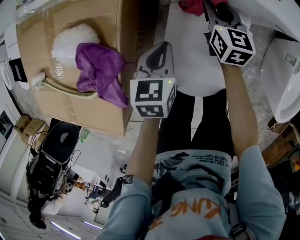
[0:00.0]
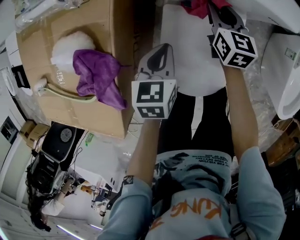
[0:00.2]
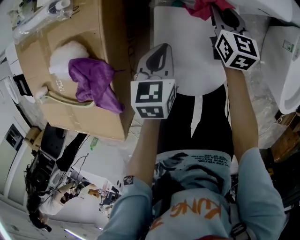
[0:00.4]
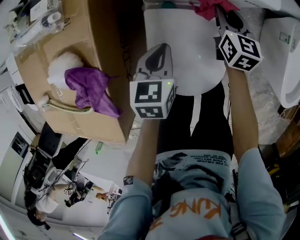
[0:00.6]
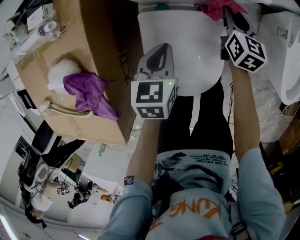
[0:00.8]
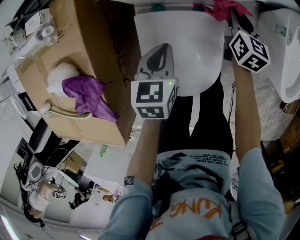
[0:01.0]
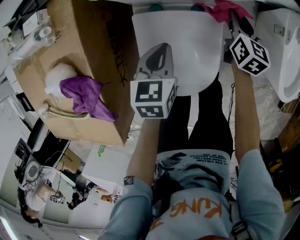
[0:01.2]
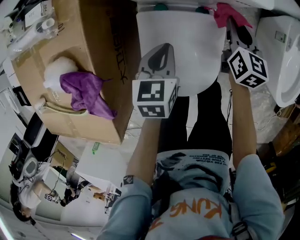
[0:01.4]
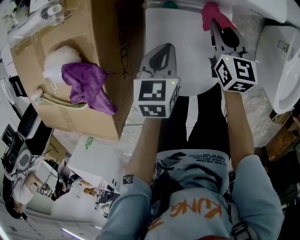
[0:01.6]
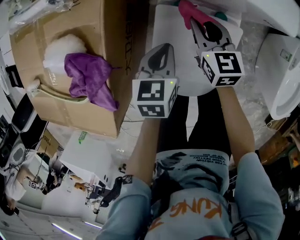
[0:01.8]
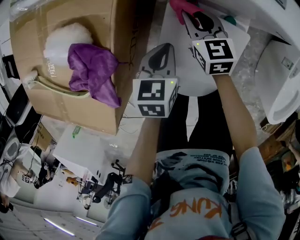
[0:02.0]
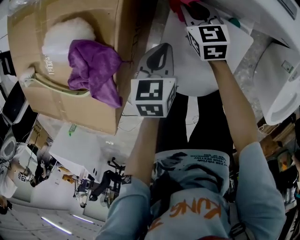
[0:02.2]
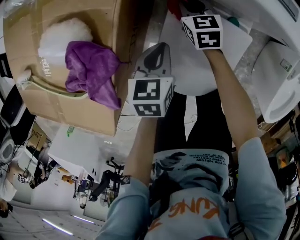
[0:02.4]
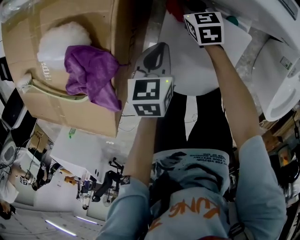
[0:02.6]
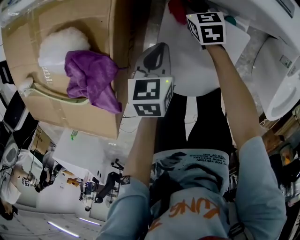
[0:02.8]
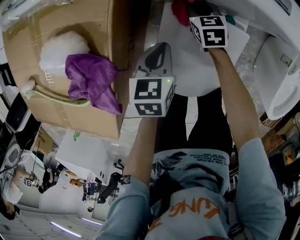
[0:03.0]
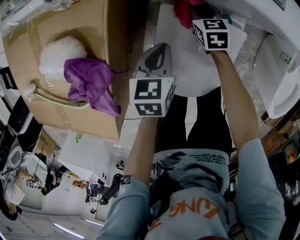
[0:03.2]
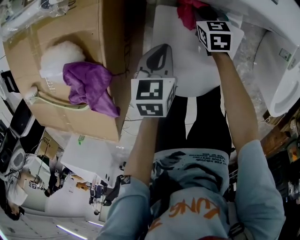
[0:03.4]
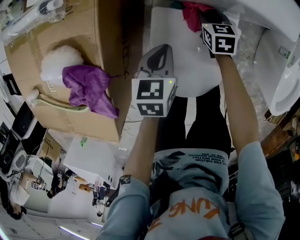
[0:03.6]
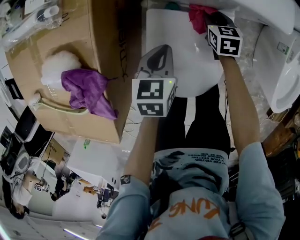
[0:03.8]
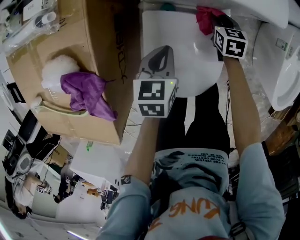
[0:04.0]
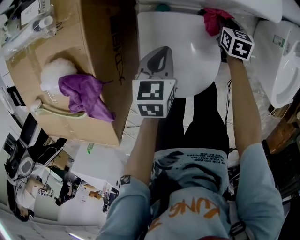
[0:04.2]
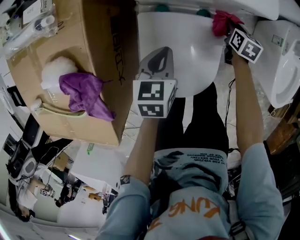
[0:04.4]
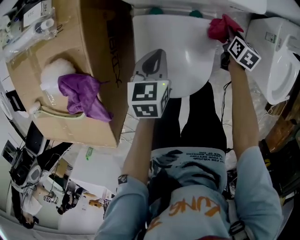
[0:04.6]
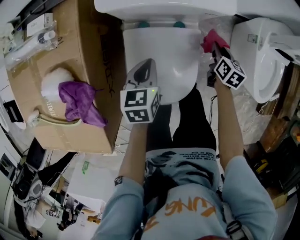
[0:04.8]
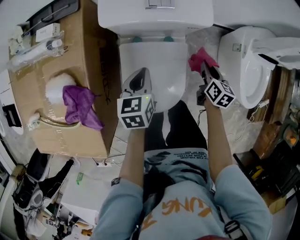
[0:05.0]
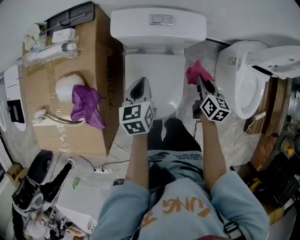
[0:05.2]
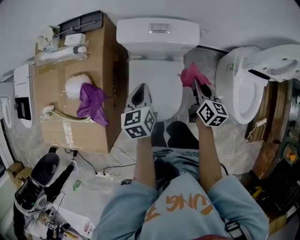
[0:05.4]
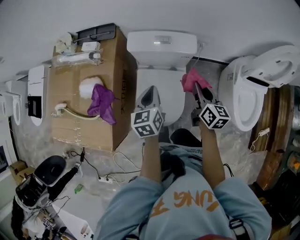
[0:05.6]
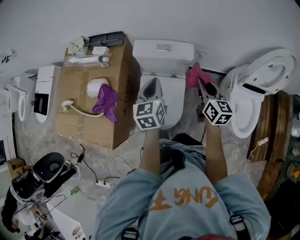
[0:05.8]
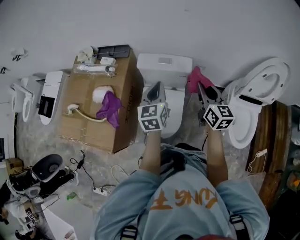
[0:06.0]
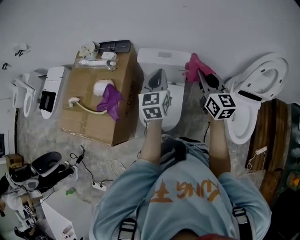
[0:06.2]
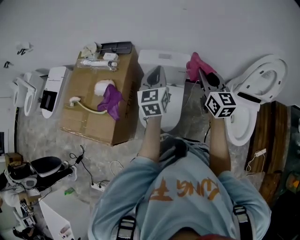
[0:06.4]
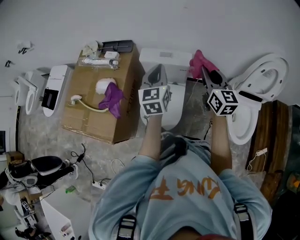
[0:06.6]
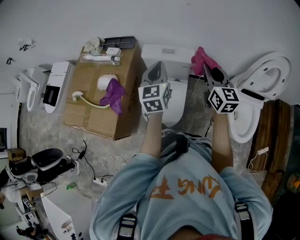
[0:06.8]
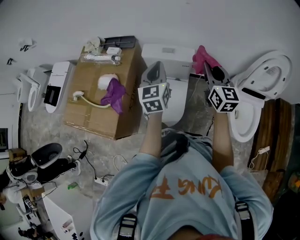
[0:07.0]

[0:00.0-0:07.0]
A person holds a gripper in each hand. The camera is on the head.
0:00.0 to 0:01.4: The left gripper shifts approximately 10 cm to the right. The right gripper goes some 20 cm to the right, and changes its angle by roughly 20 degrees.
0:01.4 to 0:02.8: The right gripper shifts approximately 30 cm to the left and downward, and swivels some 40 degrees. The left gripper heads to the left, covering roughly 10 cm.
0:02.8 to 0:04.2: The left gripper shifts roughly 10 cm to the right. Meanwhile the right gripper goes approximately 25 cm to the right, and swivels about 30 degrees.
0:04.2 to 0:05.6: The grippers both shift upward by approximately 35 cm. The right gripper points its fingers about 30 degrees further upward. Meanwhile the left gripper swivels roughly 30 degrees.
0:05.6 to 0:07.0: The two grippers go about 25 cm upward. The right gripper rotates some 30 degrees. The left gripper turns by approximately 30 degrees.

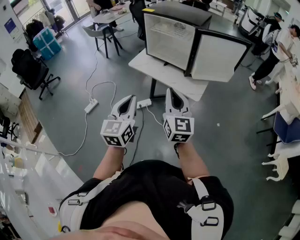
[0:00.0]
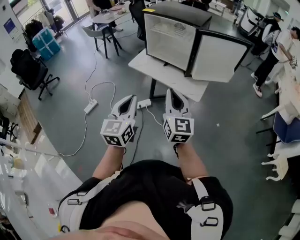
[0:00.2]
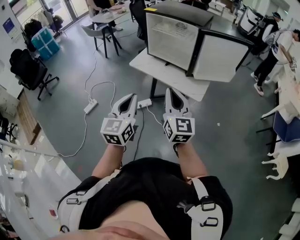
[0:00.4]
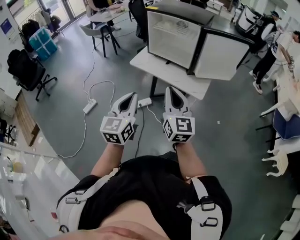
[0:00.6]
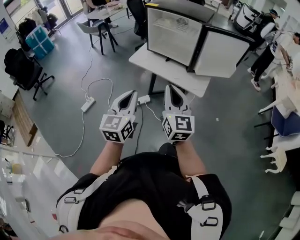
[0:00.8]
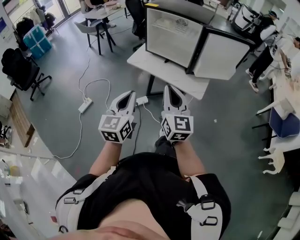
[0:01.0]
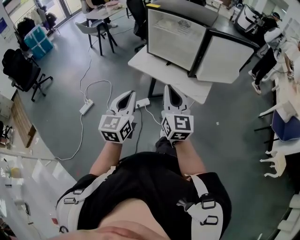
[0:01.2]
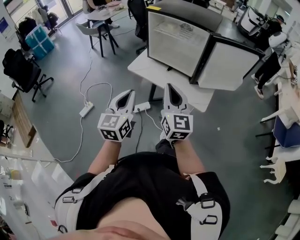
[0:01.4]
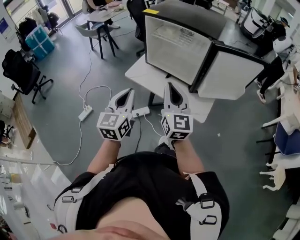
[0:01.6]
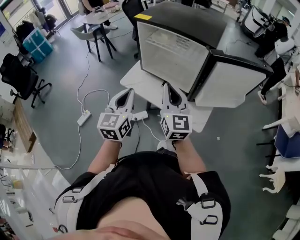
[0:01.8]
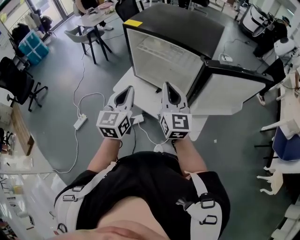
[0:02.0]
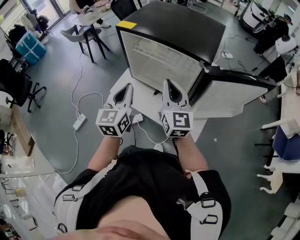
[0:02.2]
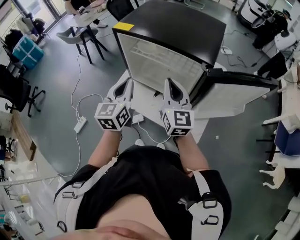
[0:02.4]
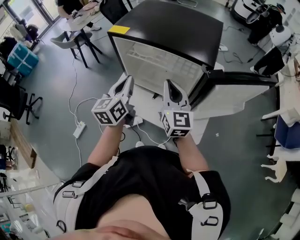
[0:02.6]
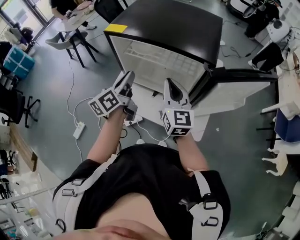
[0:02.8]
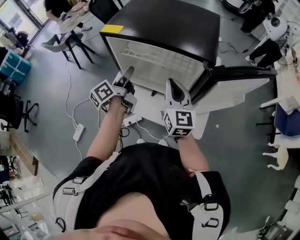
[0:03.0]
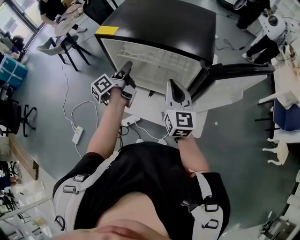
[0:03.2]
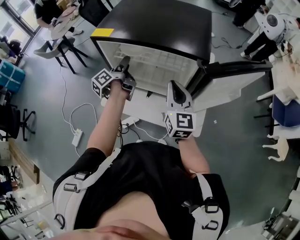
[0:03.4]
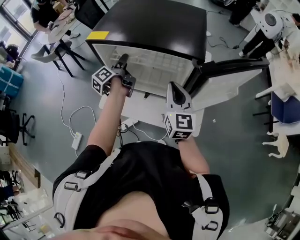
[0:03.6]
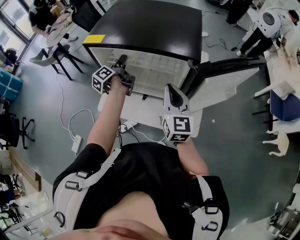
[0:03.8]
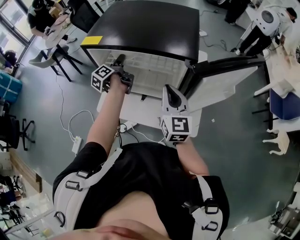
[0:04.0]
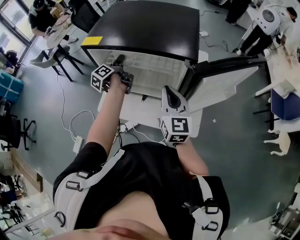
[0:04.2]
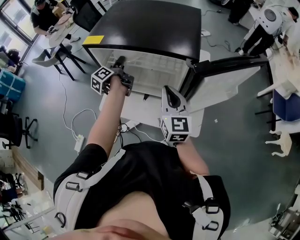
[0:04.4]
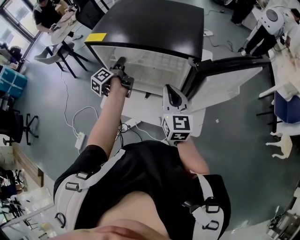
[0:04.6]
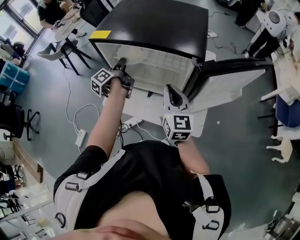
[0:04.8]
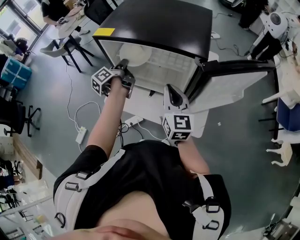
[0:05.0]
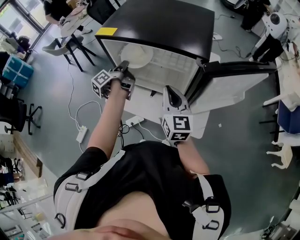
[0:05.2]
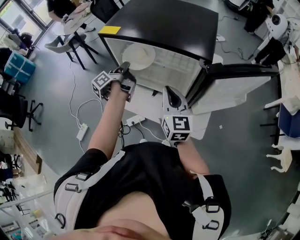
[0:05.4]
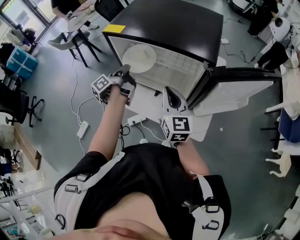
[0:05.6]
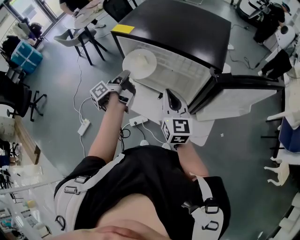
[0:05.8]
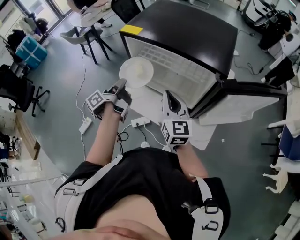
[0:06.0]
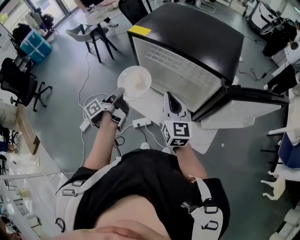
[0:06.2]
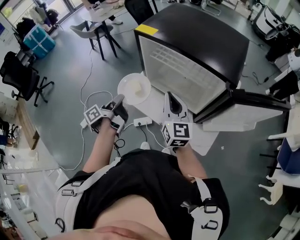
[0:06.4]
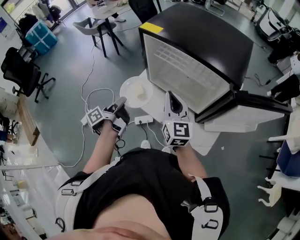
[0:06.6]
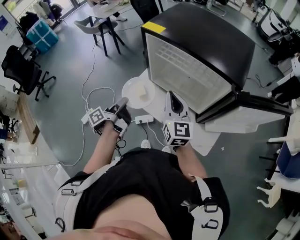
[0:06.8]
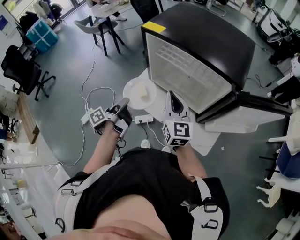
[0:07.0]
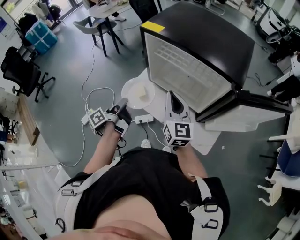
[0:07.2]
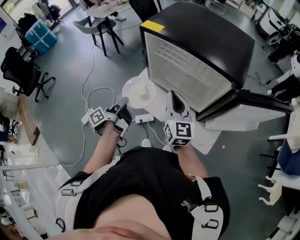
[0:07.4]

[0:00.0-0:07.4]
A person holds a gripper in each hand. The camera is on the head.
0:00.0 to 0:01.4: Both grippers move forward and to the left, approximately 15 cm.
0:01.4 to 0:03.0: The two grippers go some 35 cm forward. The left gripper rolls counterclockwise, seen from behind, by about 60 degrees, and opens up.
0:03.0 to 0:04.4: The left gripper moves forward and downward, approximately 15 cm, and opens.
0:04.4 to 0:06.0: The right gripper heads to the left, covering roughly 10 cm, while the left gripper is displaced backward and to the left by approximately 20 cm, and closes up.
0:06.0 to 0:07.4: The left gripper goes roughly 10 cm backward.

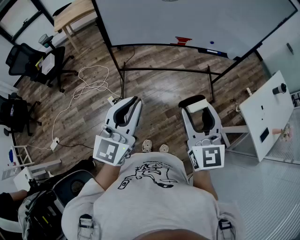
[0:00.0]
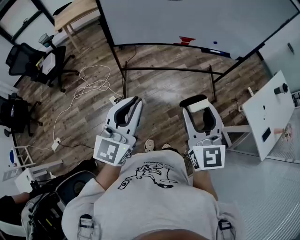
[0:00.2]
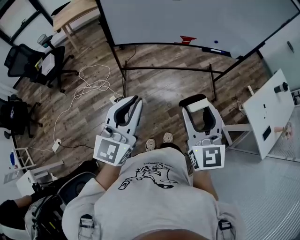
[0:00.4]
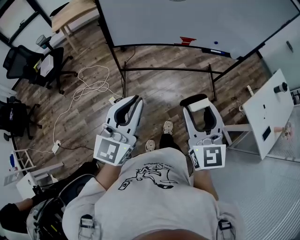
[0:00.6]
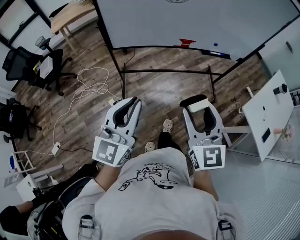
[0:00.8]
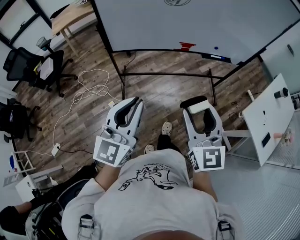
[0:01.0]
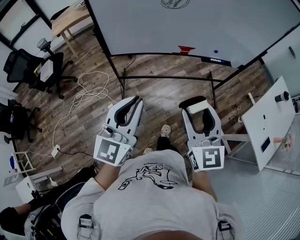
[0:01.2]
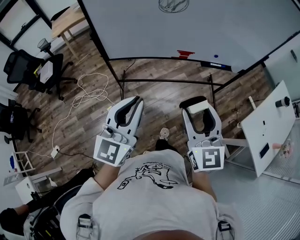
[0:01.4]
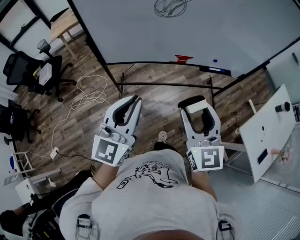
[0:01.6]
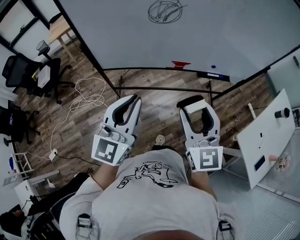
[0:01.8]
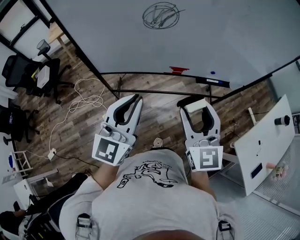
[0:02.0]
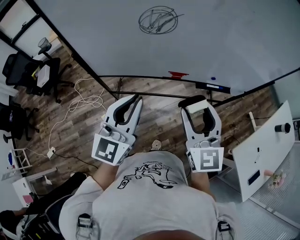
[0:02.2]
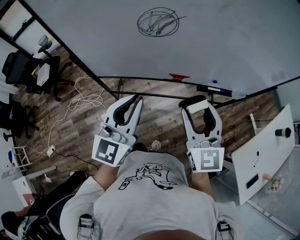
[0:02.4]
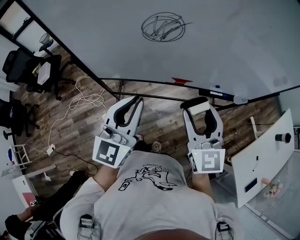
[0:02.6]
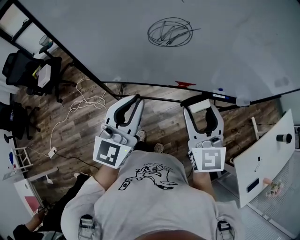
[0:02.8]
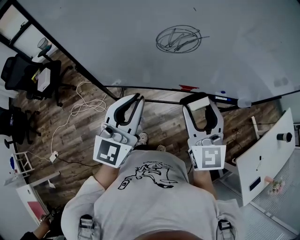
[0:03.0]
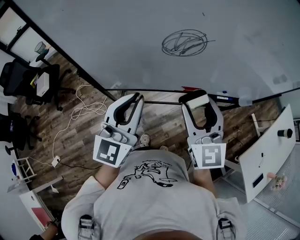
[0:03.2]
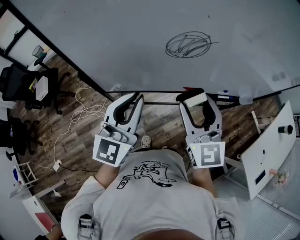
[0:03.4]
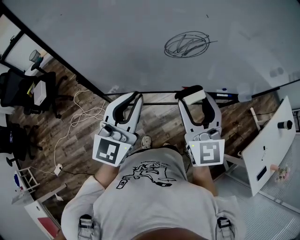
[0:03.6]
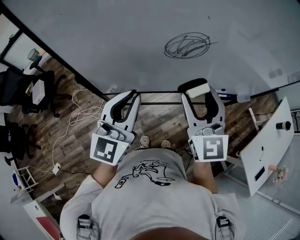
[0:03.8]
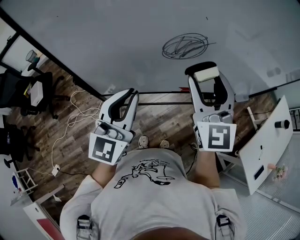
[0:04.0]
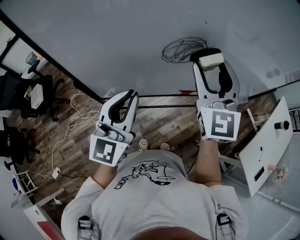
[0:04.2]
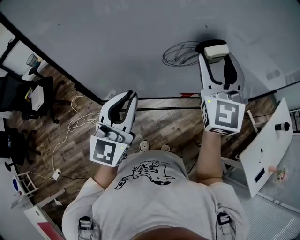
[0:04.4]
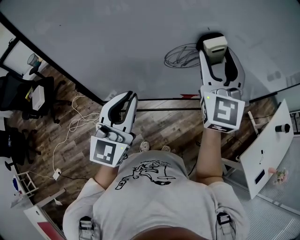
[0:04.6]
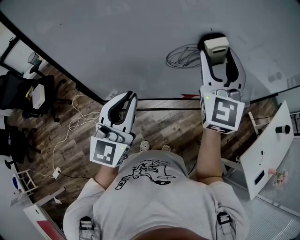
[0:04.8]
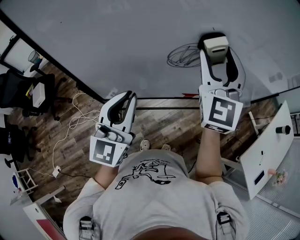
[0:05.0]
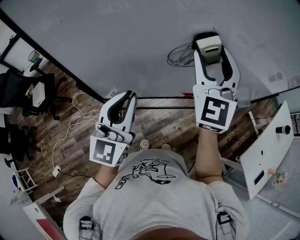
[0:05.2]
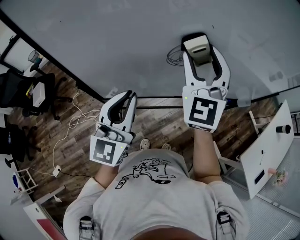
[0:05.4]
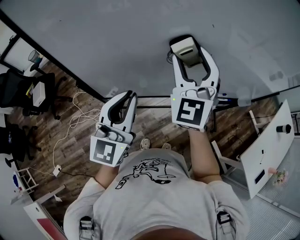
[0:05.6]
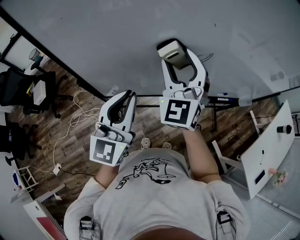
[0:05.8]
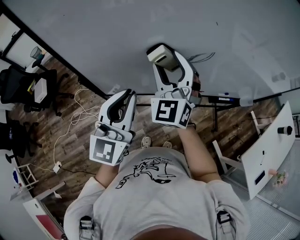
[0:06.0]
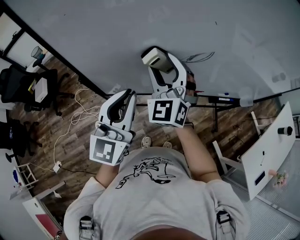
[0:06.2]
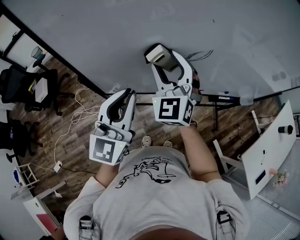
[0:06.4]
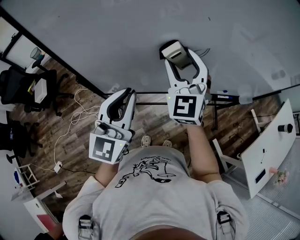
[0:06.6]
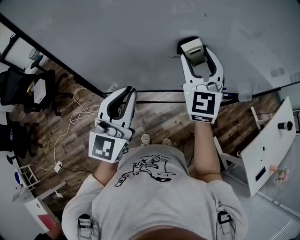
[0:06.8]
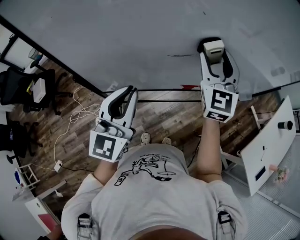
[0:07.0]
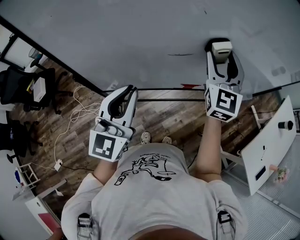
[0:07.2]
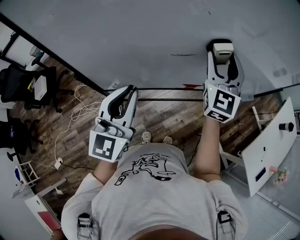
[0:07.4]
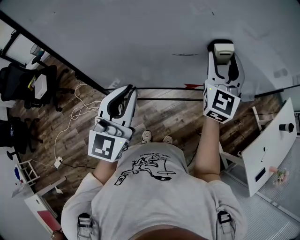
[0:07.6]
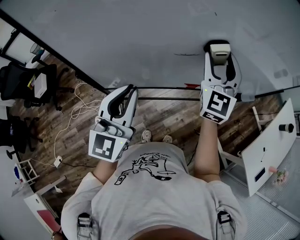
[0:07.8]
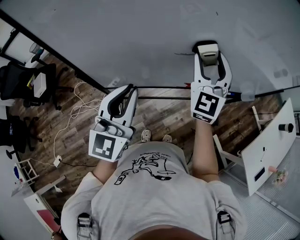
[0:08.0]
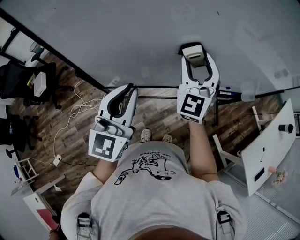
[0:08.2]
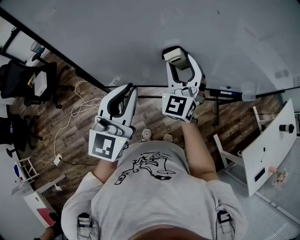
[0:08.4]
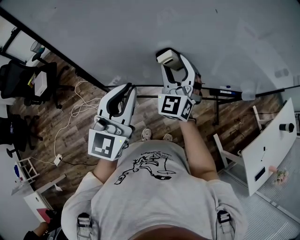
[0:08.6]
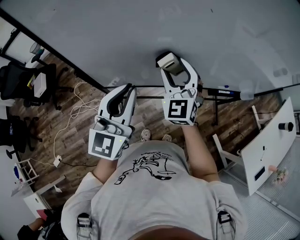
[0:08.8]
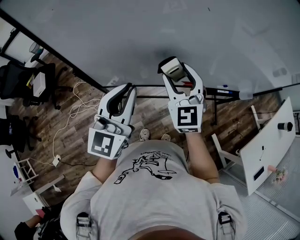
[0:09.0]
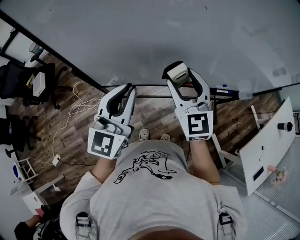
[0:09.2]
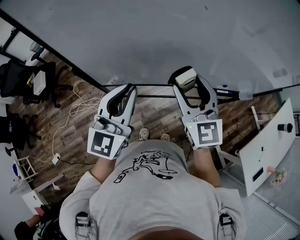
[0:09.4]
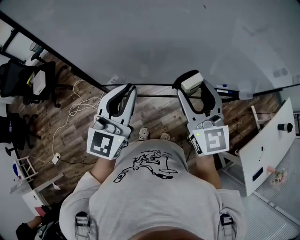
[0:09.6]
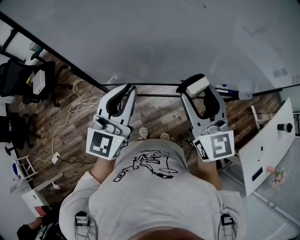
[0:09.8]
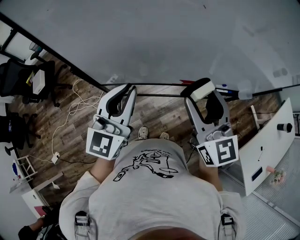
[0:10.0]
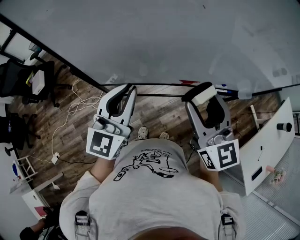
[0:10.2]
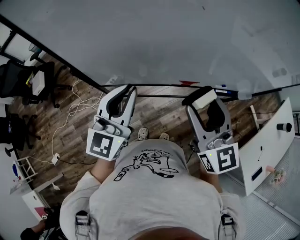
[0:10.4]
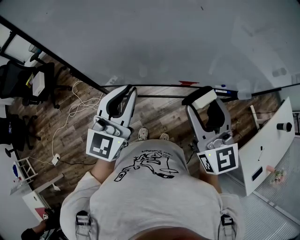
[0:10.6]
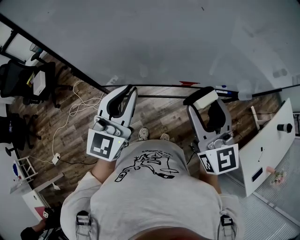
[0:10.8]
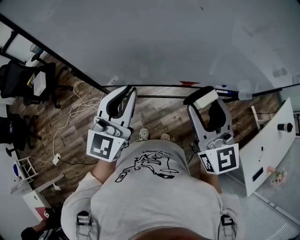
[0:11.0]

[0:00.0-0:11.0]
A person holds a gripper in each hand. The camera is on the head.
0:00.0 to 0:01.6: Both grippers travel together forward, some 20 cm.
0:01.6 to 0:03.2: The grippers both shift forward by some 25 cm.
0:03.2 to 0:04.8: The right gripper is displaced forward and upward by roughly 20 cm, and swivels some 30 degrees. The left gripper ends up about 5 cm from where it was.
0:04.8 to 0:06.2: The right gripper travels to the left and downward by approximately 20 cm, and rotates roughly 20 degrees.
0:06.2 to 0:07.8: The right gripper moves to the right, some 20 cm, and rotates roughly 30 degrees.
0:07.8 to 0:09.4: The right gripper travels backward, to the left and downward by approximately 15 cm, and rotates about 30 degrees.
0:09.4 to 0:11.0: The right gripper is displaced backward by about 5 cm.
